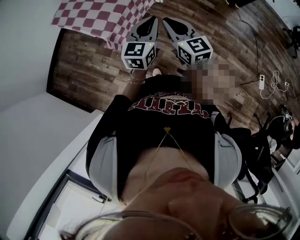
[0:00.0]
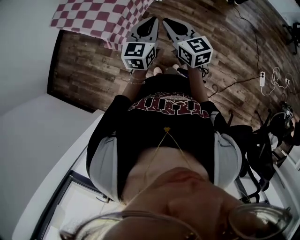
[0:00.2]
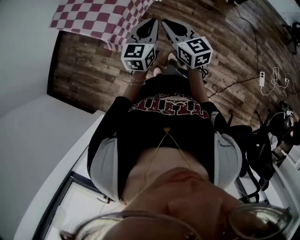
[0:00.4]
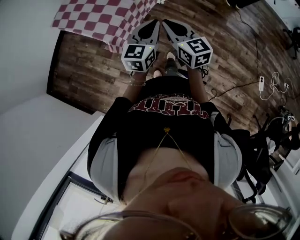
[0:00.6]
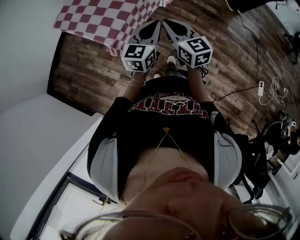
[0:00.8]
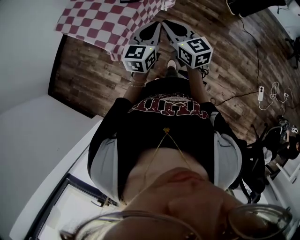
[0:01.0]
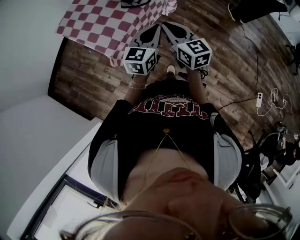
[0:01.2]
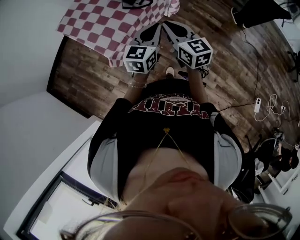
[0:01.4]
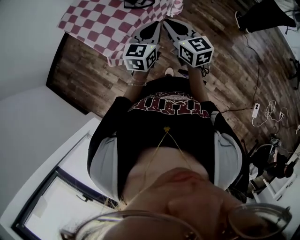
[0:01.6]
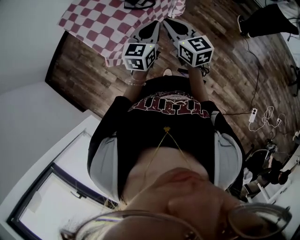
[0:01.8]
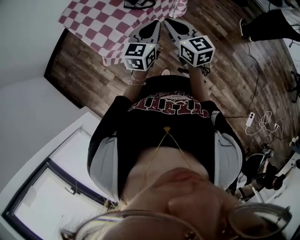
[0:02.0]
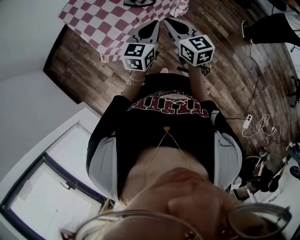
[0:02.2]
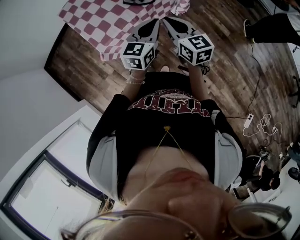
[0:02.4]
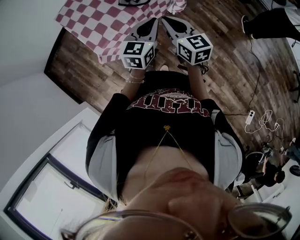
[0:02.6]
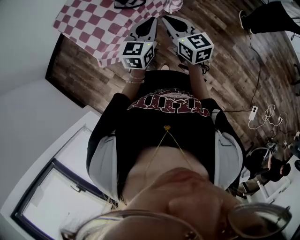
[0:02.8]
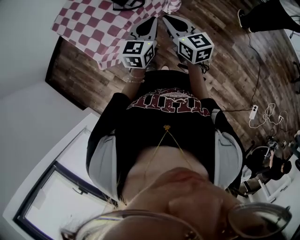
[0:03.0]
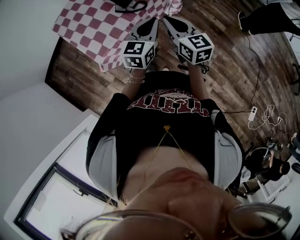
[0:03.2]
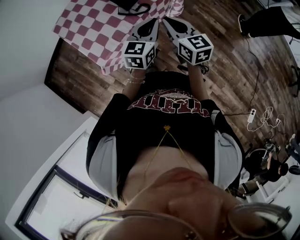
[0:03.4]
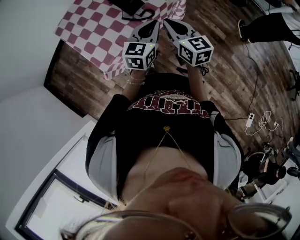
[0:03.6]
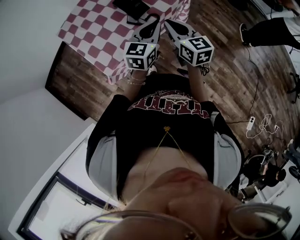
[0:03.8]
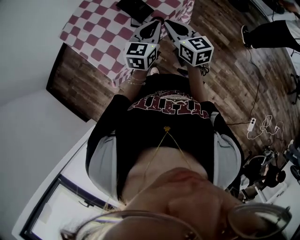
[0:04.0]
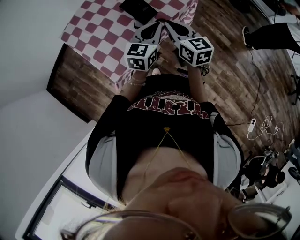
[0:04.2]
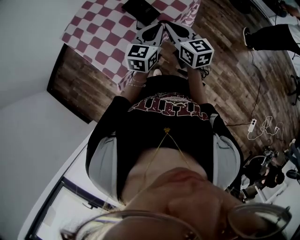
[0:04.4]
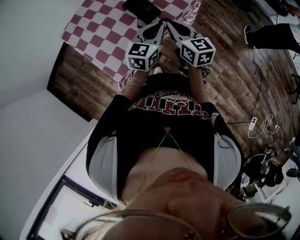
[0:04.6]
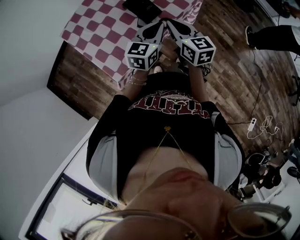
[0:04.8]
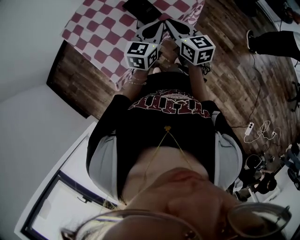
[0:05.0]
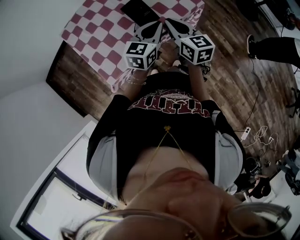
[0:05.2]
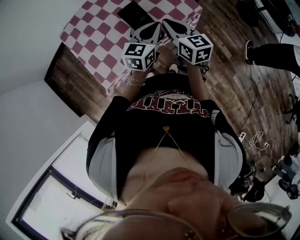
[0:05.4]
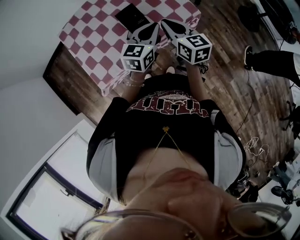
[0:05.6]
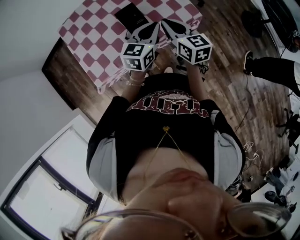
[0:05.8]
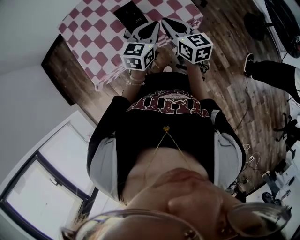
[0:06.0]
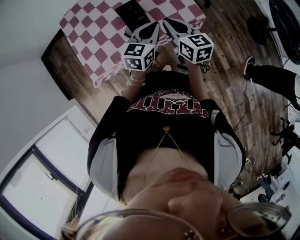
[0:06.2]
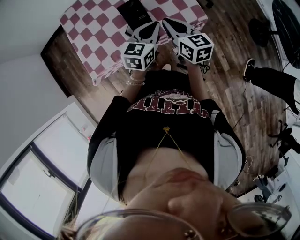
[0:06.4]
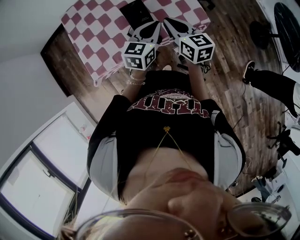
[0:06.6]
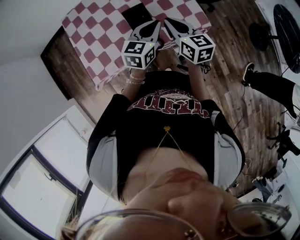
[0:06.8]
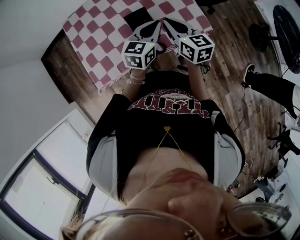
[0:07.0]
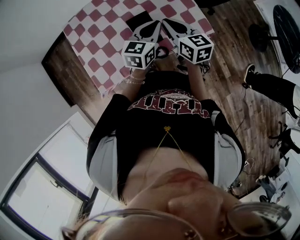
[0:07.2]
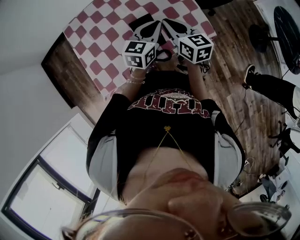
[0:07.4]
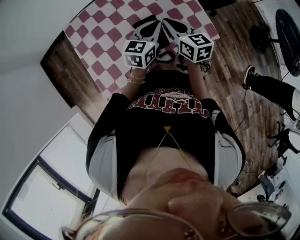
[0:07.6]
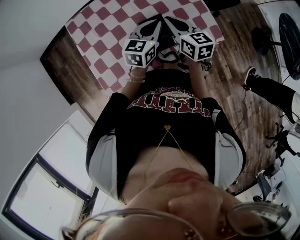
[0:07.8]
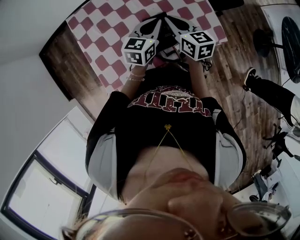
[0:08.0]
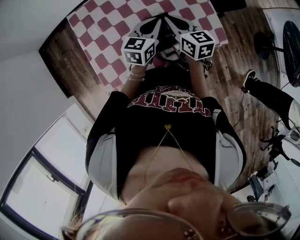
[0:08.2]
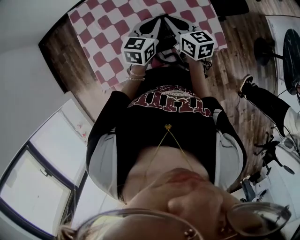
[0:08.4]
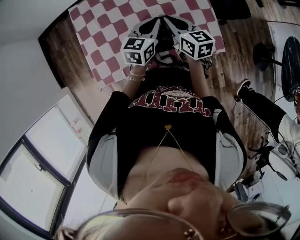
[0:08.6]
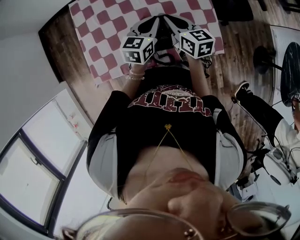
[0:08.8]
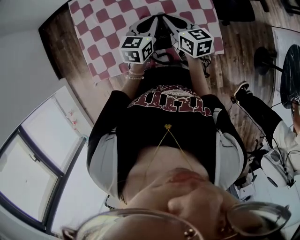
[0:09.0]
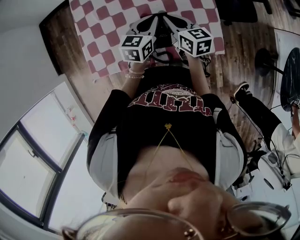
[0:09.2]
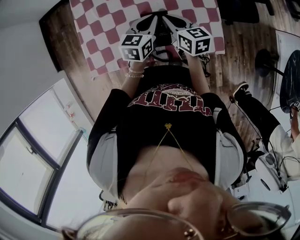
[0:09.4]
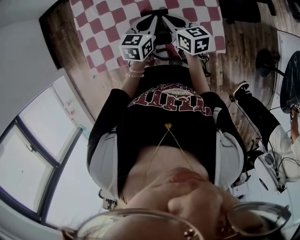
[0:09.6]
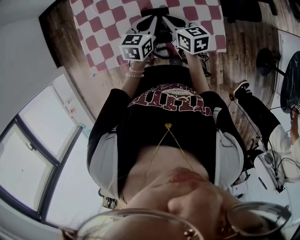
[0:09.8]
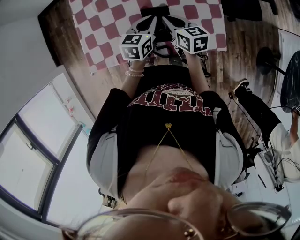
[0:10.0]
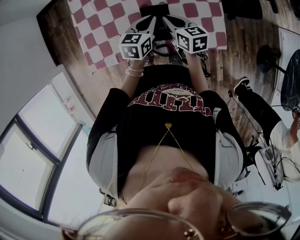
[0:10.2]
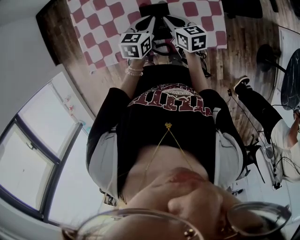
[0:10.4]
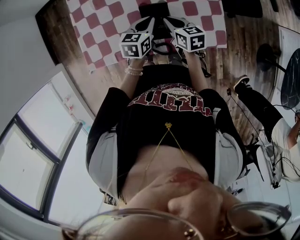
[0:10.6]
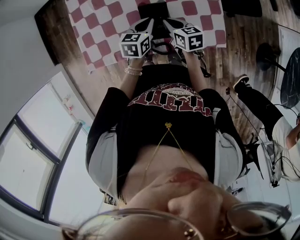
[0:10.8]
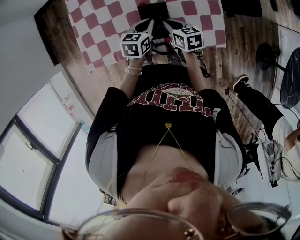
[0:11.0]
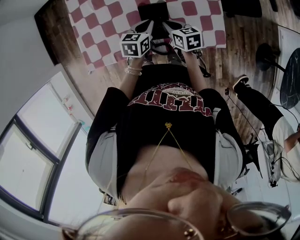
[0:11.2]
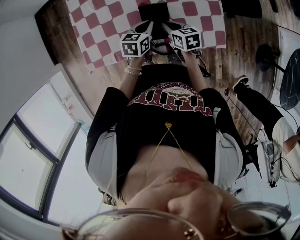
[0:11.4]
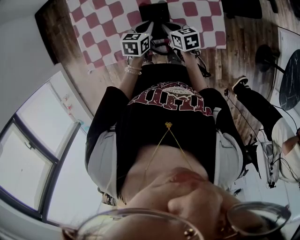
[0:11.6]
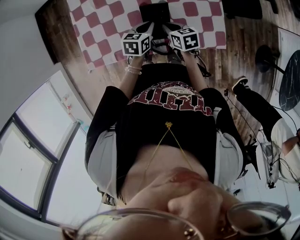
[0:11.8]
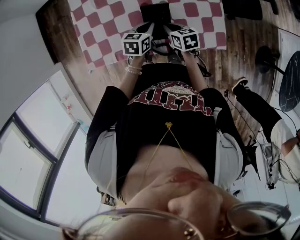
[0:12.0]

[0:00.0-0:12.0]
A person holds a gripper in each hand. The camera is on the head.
0:00.0 to 0:01.6: Both grippers move forward, some 15 cm.
0:01.6 to 0:03.0: The two grippers go about 10 cm to the right and forward.
0:03.0 to 0:04.4: Both grippers travel together forward and to the left, some 20 cm.
0:04.4 to 0:06.0: The grippers both shift forward and to the right by about 15 cm.
0:06.0 to 0:07.6: Both grippers move forward and to the left, about 15 cm.
0:07.6 to 0:09.0: The left gripper changes place by some 5 cm. Meanwhile the right gripper ends up some 5 cm from where it was.
0:09.0 to 0:10.4: Both grippers move downward, about 10 cm.
0:10.4 to 0:12.0: Both grippers move downward, approximately 5 cm.

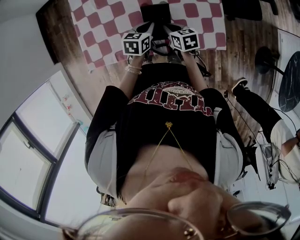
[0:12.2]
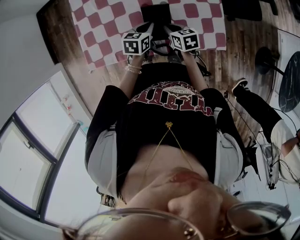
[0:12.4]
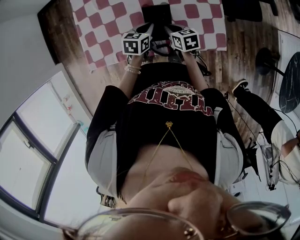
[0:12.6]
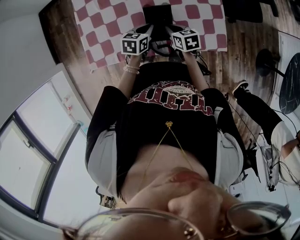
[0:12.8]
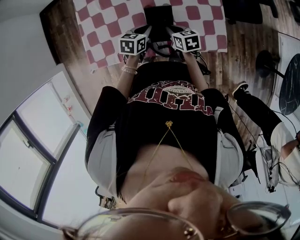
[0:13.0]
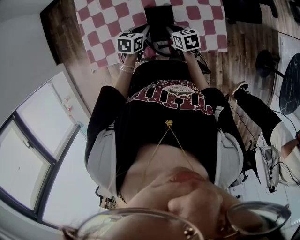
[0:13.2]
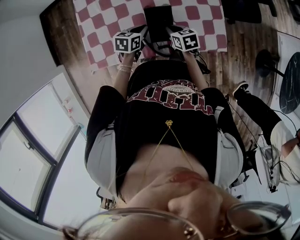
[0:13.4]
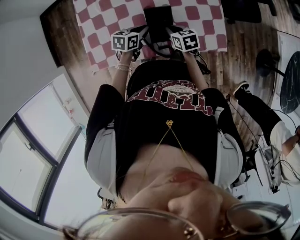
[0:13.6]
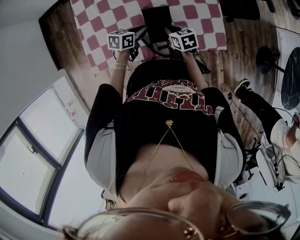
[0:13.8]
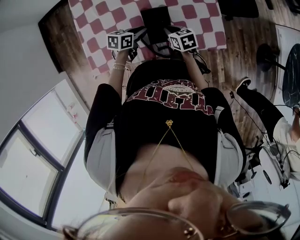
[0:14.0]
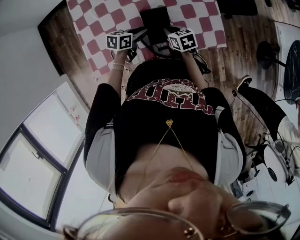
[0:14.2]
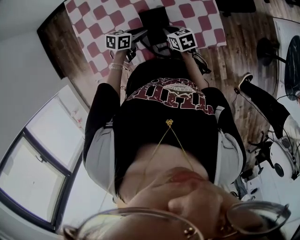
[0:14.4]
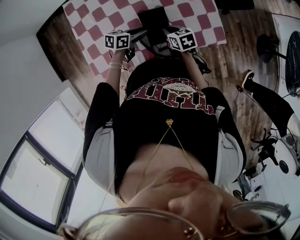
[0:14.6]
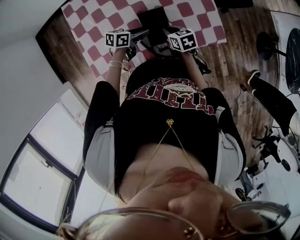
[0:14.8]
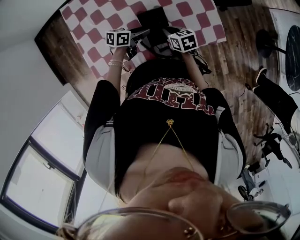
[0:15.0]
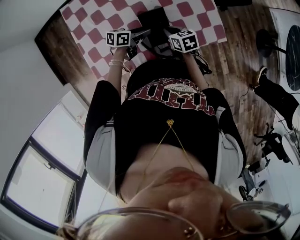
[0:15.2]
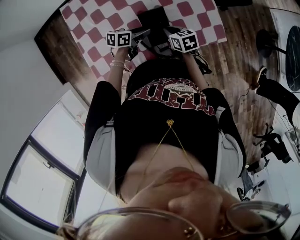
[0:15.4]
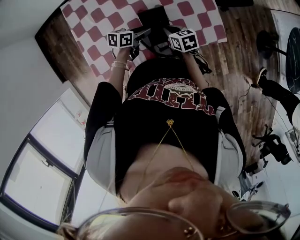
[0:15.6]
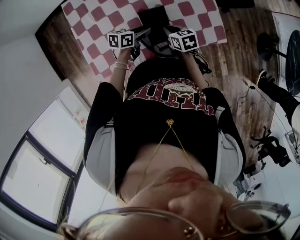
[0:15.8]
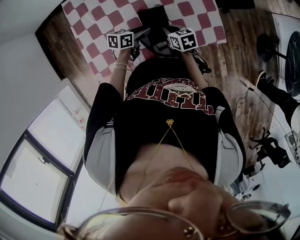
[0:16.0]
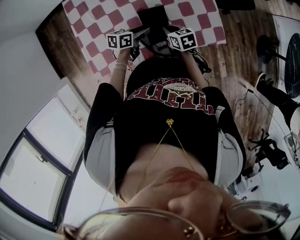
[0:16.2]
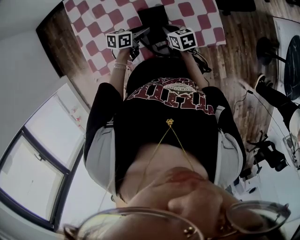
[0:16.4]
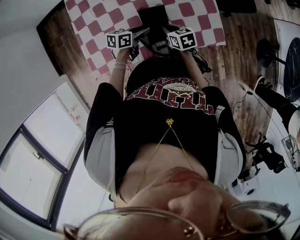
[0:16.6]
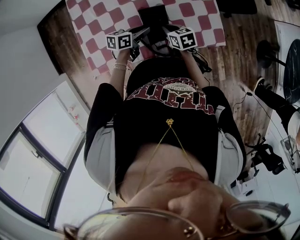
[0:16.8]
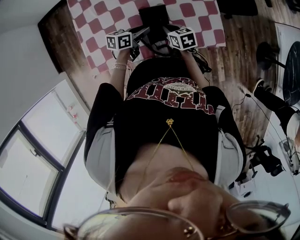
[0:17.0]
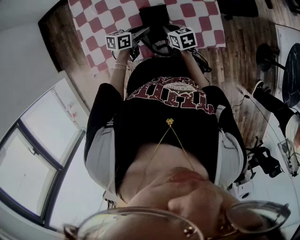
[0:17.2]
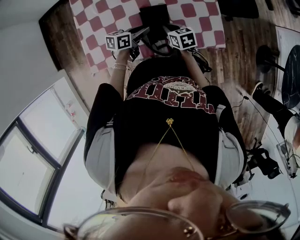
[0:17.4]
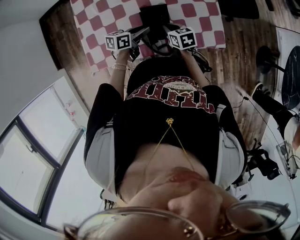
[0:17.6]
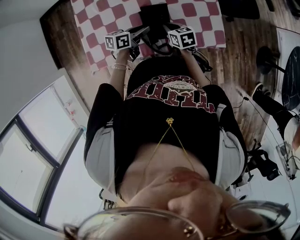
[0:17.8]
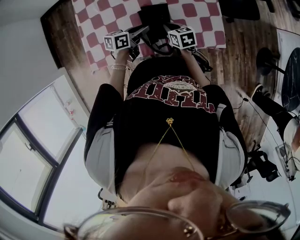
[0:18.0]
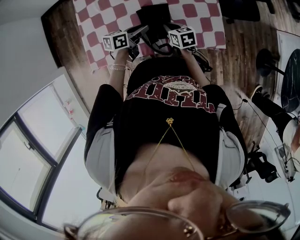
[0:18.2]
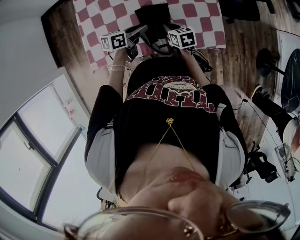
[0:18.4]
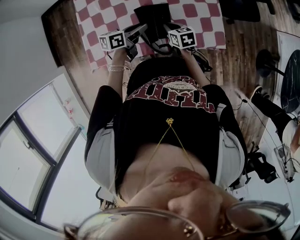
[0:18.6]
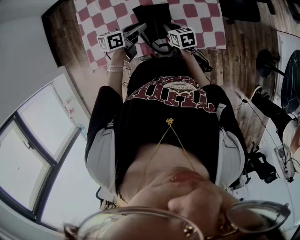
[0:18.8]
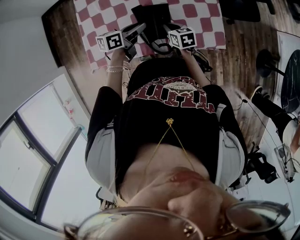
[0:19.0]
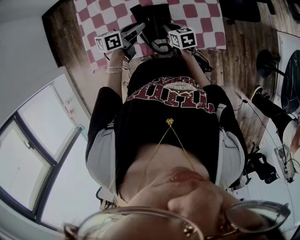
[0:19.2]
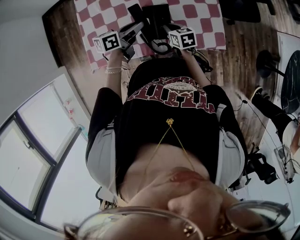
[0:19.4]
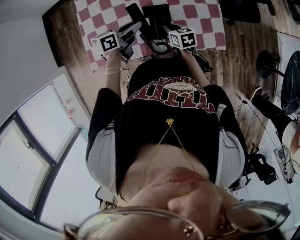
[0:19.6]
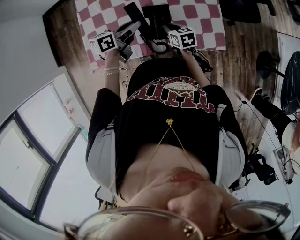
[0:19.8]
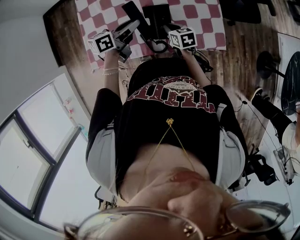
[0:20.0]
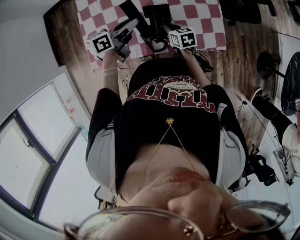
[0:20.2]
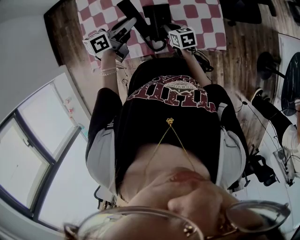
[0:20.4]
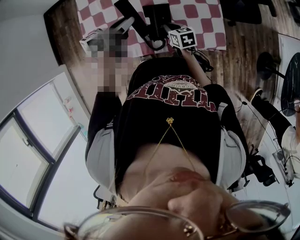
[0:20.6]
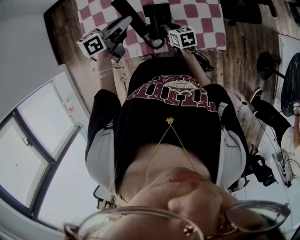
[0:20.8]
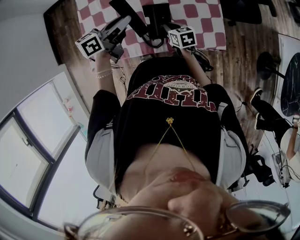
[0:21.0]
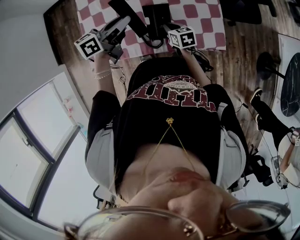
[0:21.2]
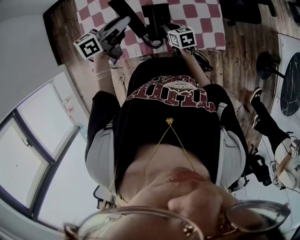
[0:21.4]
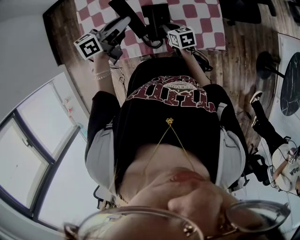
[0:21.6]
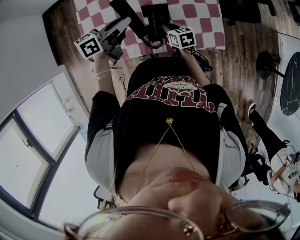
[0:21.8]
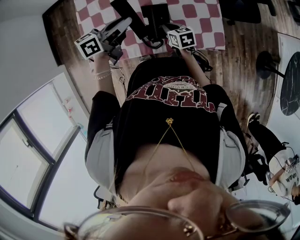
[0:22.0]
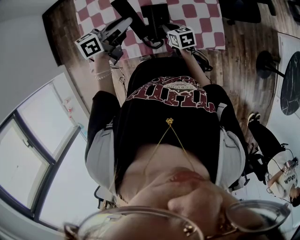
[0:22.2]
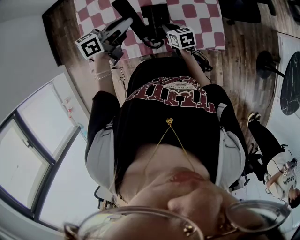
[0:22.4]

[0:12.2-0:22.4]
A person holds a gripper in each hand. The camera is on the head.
0:12.2 to 0:13.6: The grippers make only small movements.
0:13.6 to 0:15.2: The left gripper changes its angle by some 30 degrees, and opens up.
0:15.2 to 0:18.0: The grippers move only a little.
0:18.0 to 0:19.4: The left gripper travels upward by some 5 cm.
0:19.4 to 0:21.0: The left gripper is displaced upward by some 10 cm.
0:21.0 to 0:22.4: The two grippers keep their place.

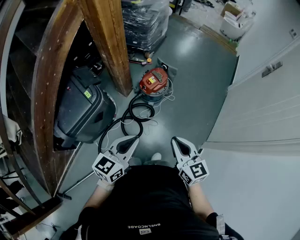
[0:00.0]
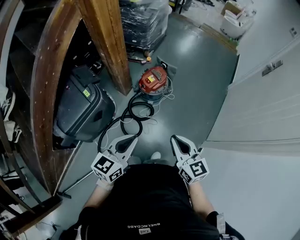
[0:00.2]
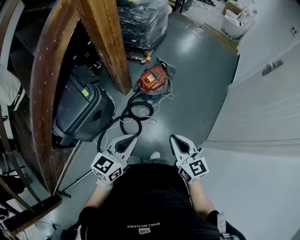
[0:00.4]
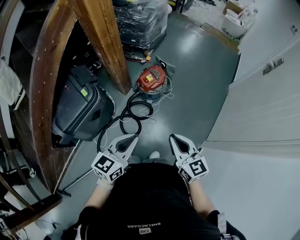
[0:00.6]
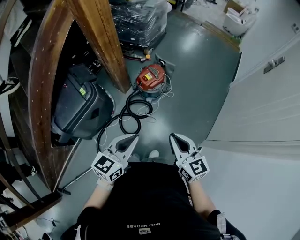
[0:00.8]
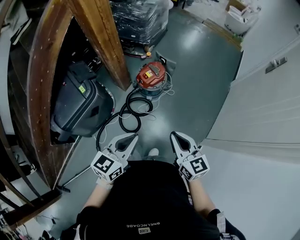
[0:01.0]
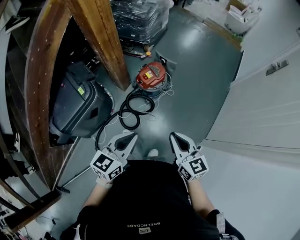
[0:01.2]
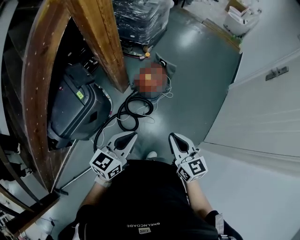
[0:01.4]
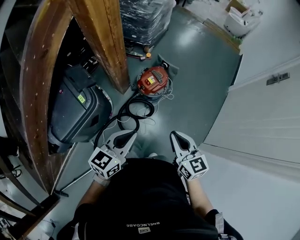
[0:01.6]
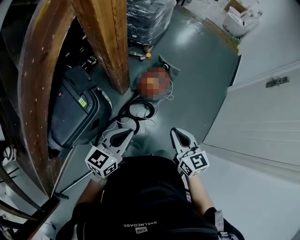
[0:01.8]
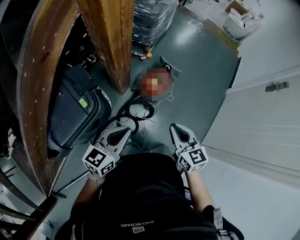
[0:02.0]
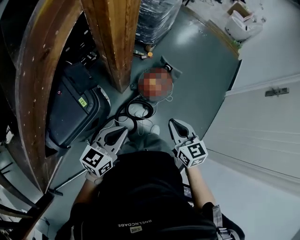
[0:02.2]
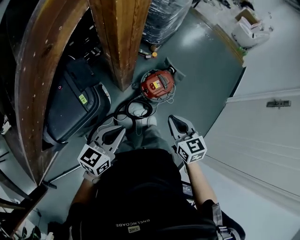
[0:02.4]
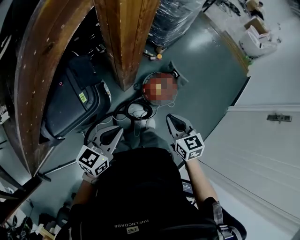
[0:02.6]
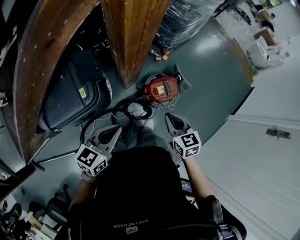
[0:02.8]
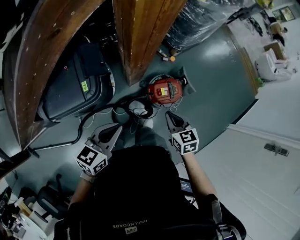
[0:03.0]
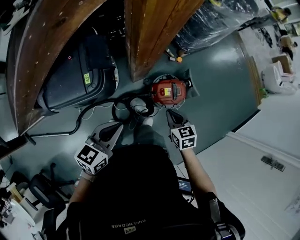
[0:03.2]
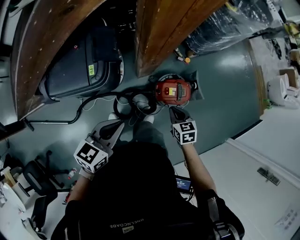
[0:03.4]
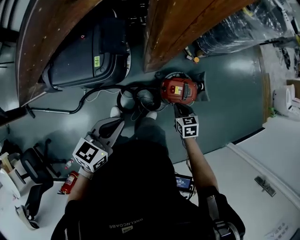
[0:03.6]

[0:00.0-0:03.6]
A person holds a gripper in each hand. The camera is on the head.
0:00.0 to 0:01.8: The left gripper travels forward and to the left by approximately 20 cm; the right gripper moves forward, some 20 cm.
0:01.8 to 0:03.6: The right gripper shifts by about 40 cm, and tilts its fingers some 30 degrees downward, while the left gripper ends up some 15 cm from where it was, and changes its angle by approximately 40 degrees.
